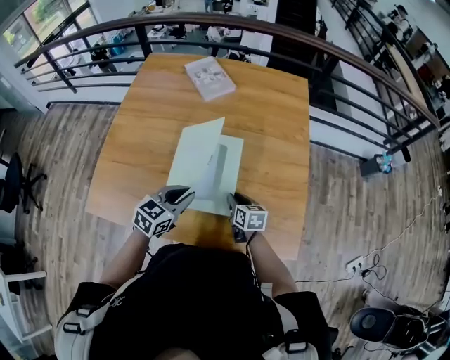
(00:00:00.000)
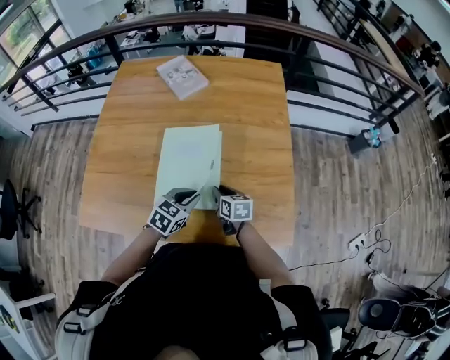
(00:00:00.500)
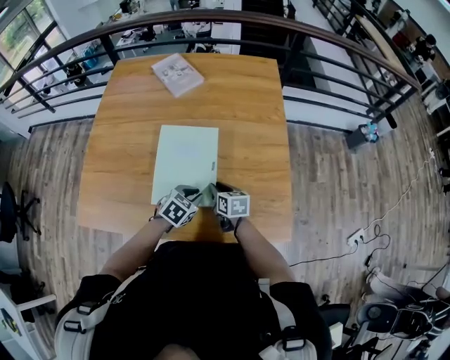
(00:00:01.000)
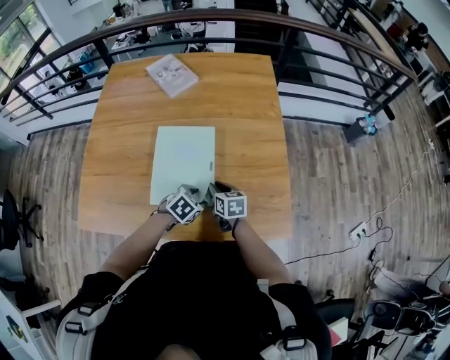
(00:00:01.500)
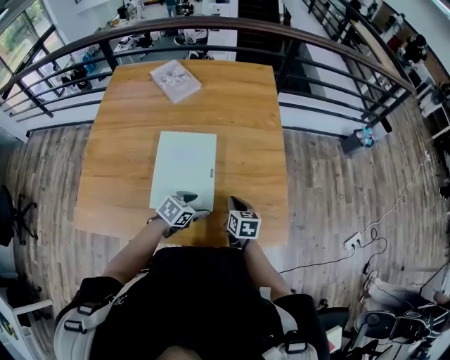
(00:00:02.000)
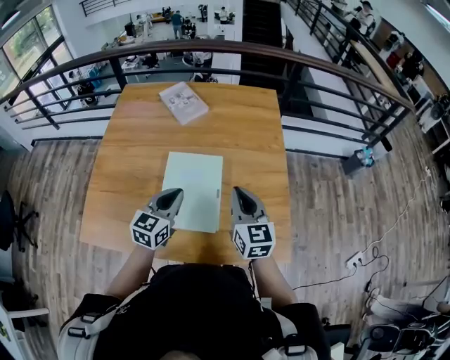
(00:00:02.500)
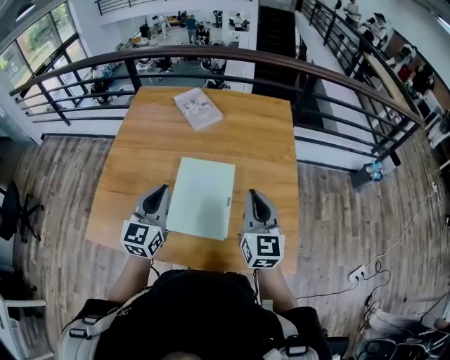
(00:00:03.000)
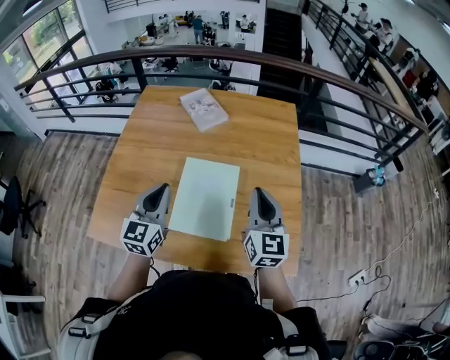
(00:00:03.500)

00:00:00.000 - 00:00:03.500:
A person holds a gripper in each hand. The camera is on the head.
00:00:00.000 - 00:00:02.000: The right gripper is displaced to the right by roughly 10 cm, and closes up, while the left gripper travels downward and to the right by roughly 15 cm, turns by some 30 degrees, and opens up.
00:00:02.000 - 00:00:03.500: The right gripper goes roughly 30 cm upward, and tilts its fingers roughly 40 degrees upward. The left gripper travels upward and to the left by roughly 30 cm, tilts its fingers about 40 degrees upward, and closes its fingers.

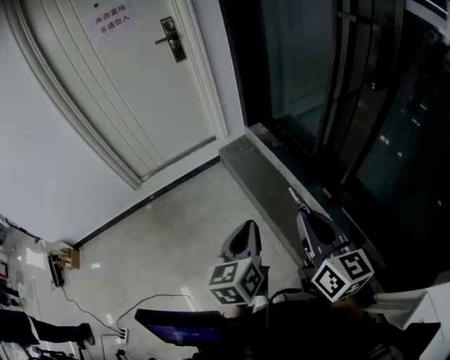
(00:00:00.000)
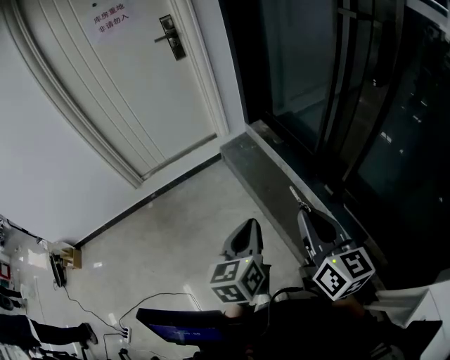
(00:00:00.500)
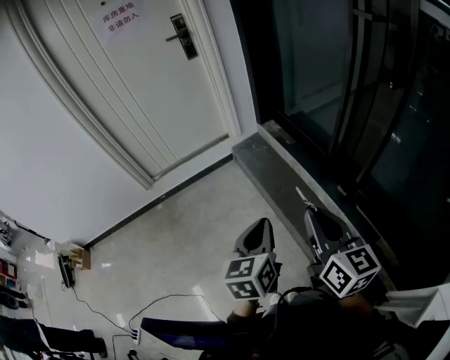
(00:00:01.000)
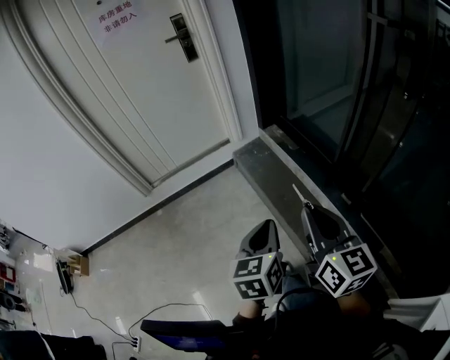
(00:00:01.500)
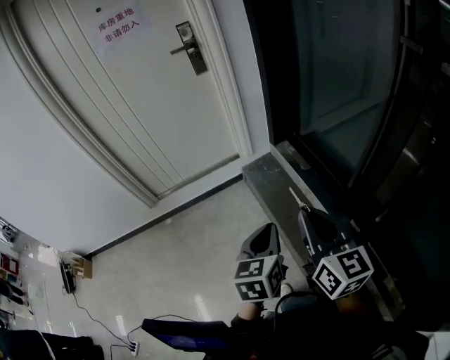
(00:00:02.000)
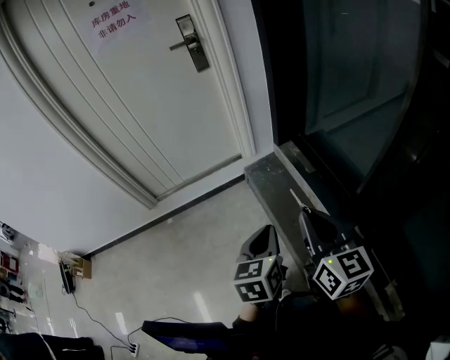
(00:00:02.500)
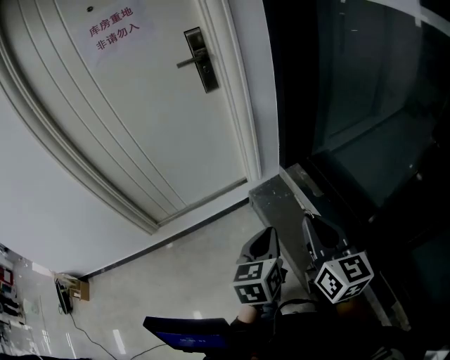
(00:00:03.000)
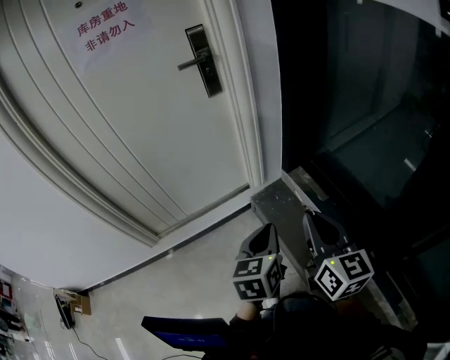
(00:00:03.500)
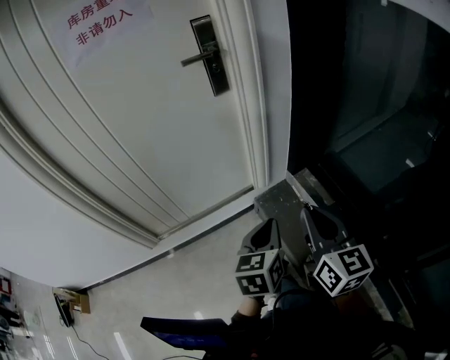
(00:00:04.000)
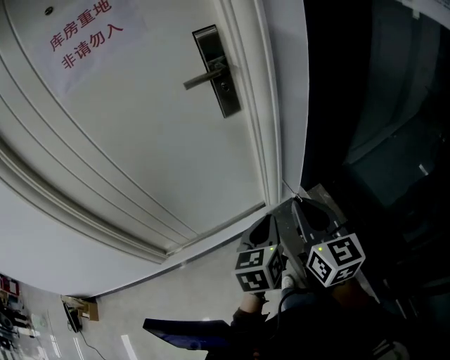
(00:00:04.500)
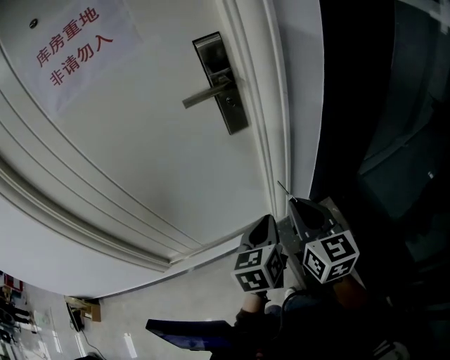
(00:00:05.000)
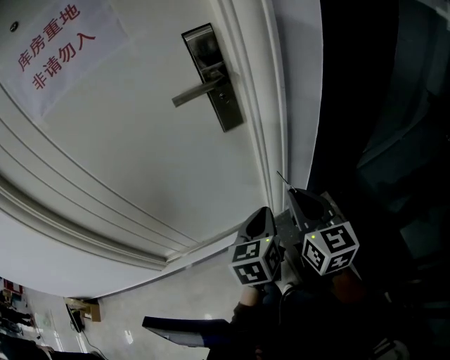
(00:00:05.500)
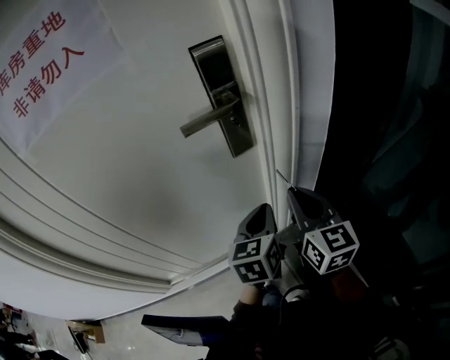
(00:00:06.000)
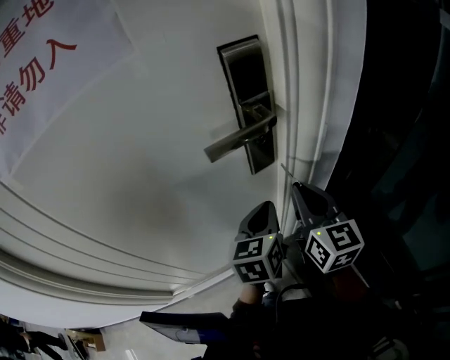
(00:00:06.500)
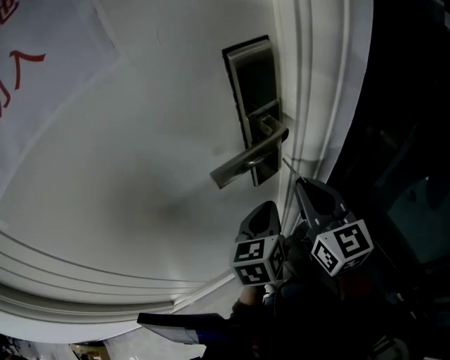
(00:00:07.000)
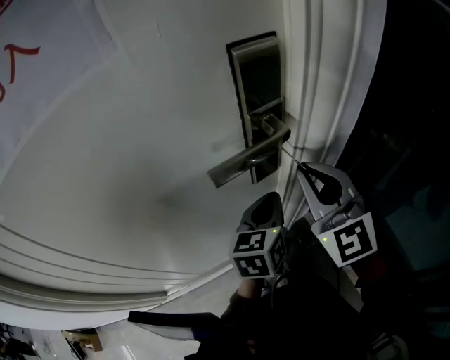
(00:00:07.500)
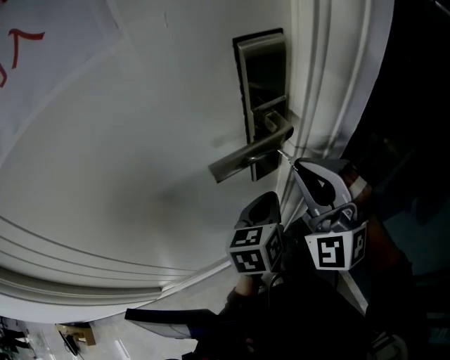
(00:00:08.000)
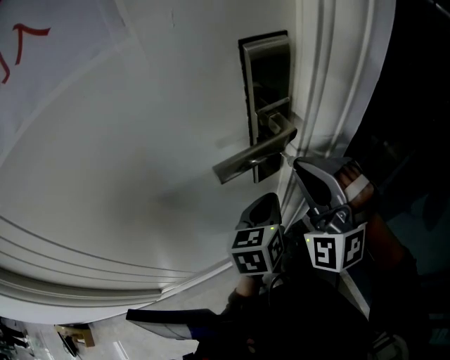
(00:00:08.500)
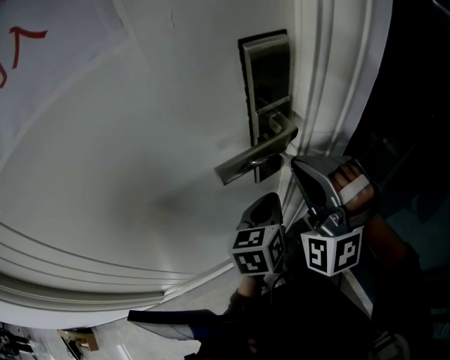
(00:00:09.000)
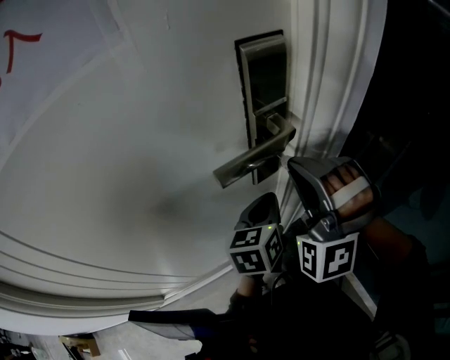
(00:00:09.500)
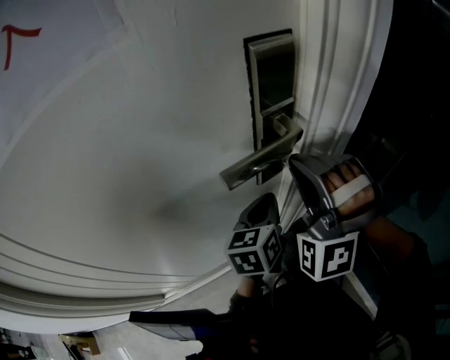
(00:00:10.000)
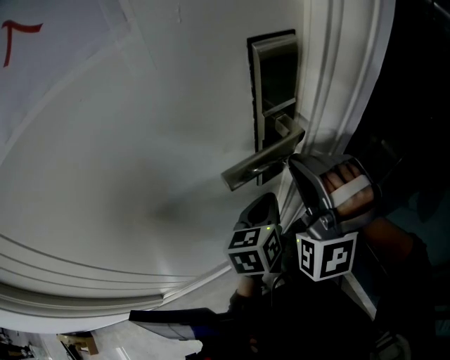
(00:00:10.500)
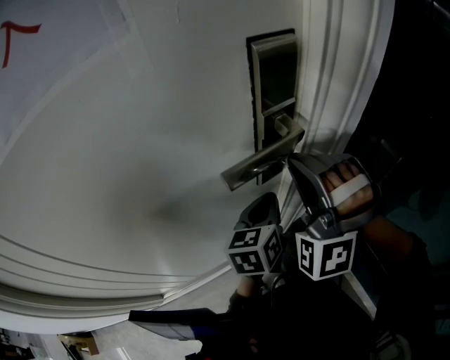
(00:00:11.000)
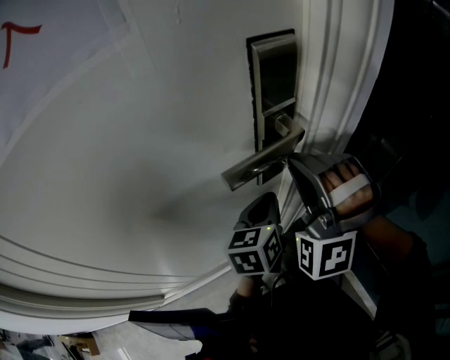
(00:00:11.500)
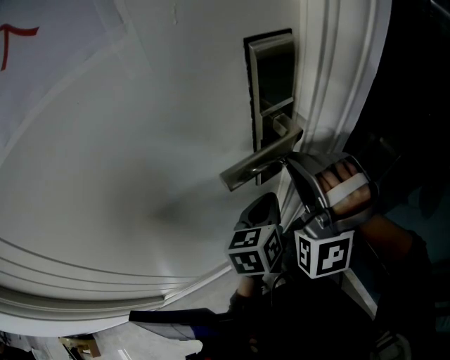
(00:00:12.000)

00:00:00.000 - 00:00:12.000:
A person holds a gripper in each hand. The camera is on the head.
00:00:00.000 - 00:00:02.000: The two grippers go roughly 25 cm forward.
00:00:02.000 - 00:00:04.000: The two grippers go about 40 cm forward and to the left.
00:00:04.000 - 00:00:06.000: Both grippers travel together forward, roughly 35 cm.
00:00:06.000 - 00:00:08.000: The left gripper is displaced forward by roughly 15 cm, while the right gripper shifts some 15 cm forward, upward and to the left, and rolls counterclockwise, seen from behind, by about 70 degrees.
00:00:08.000 - 00:00:10.000: The right gripper rotates approximately 30 degrees.
00:00:10.000 - 00:00:12.000: Both grippers stay about where they are.

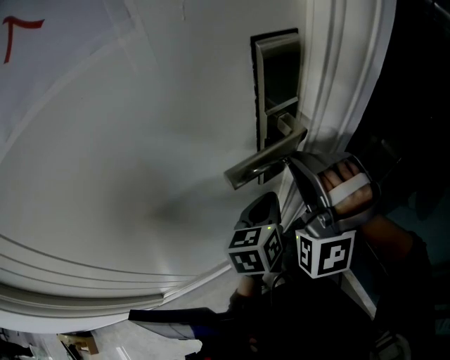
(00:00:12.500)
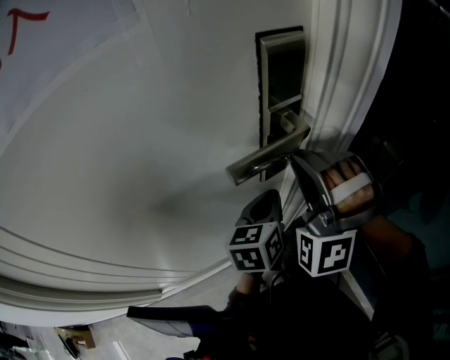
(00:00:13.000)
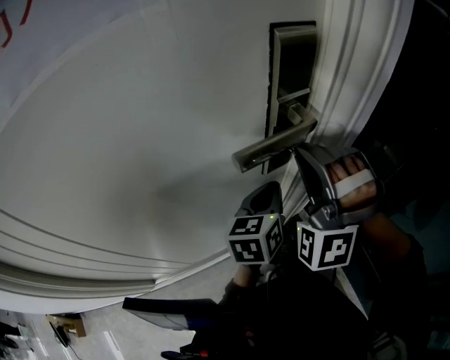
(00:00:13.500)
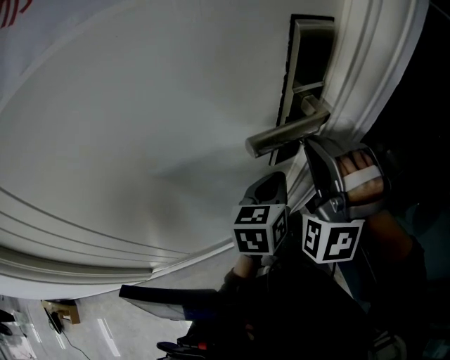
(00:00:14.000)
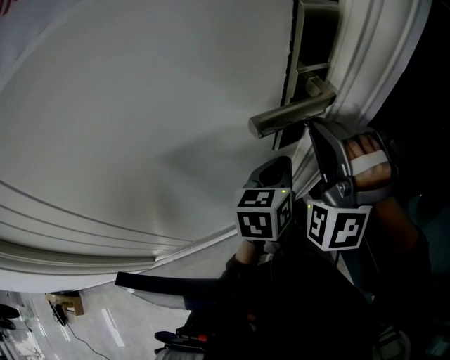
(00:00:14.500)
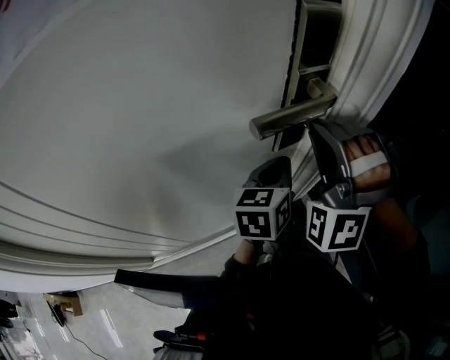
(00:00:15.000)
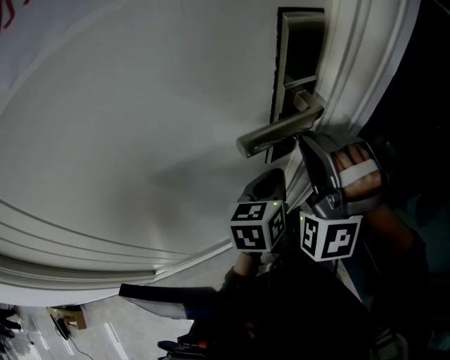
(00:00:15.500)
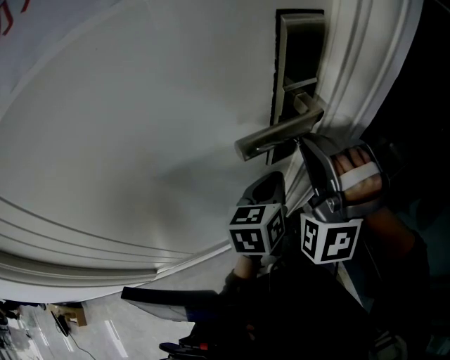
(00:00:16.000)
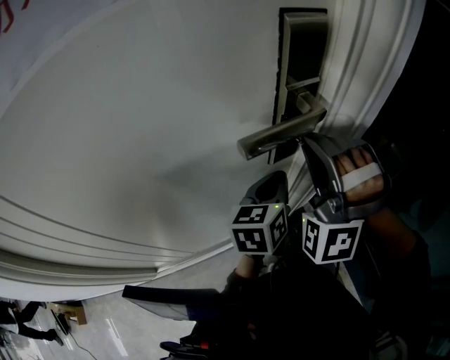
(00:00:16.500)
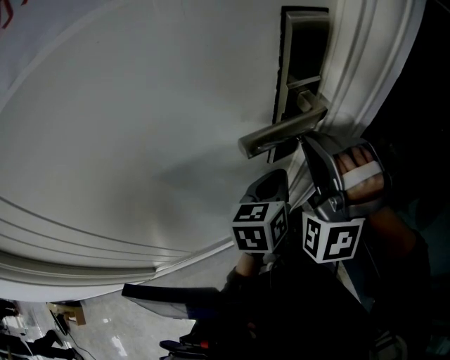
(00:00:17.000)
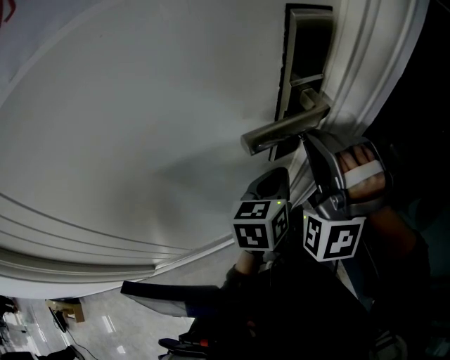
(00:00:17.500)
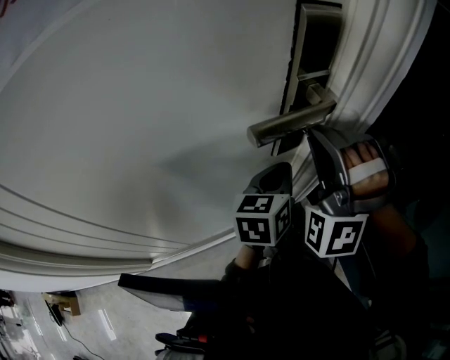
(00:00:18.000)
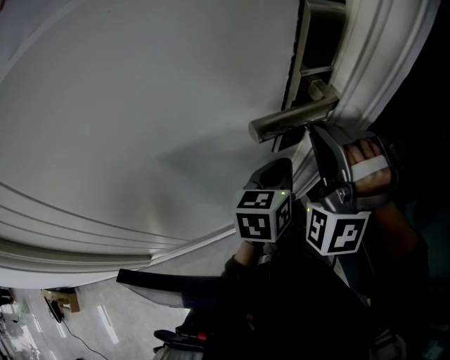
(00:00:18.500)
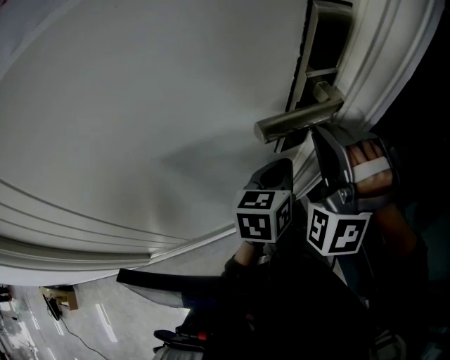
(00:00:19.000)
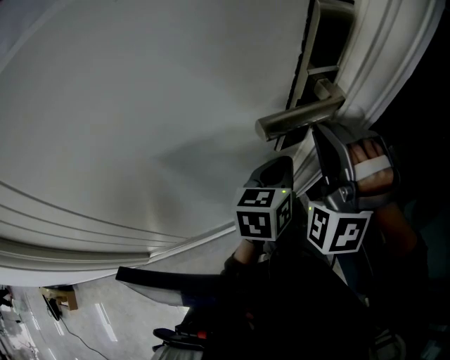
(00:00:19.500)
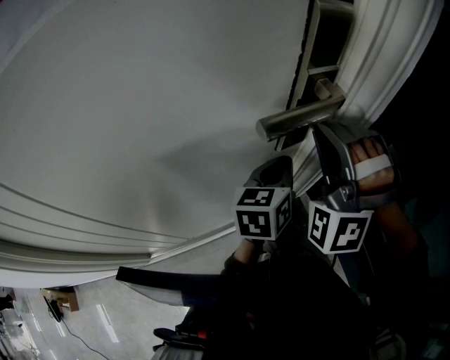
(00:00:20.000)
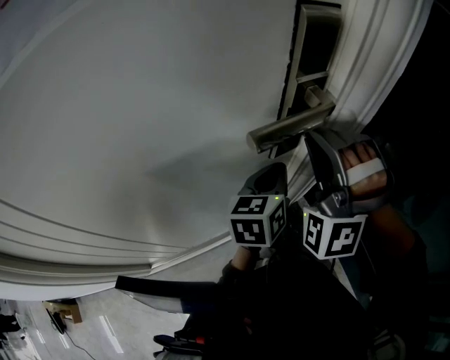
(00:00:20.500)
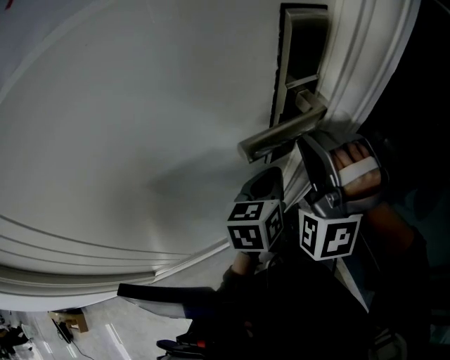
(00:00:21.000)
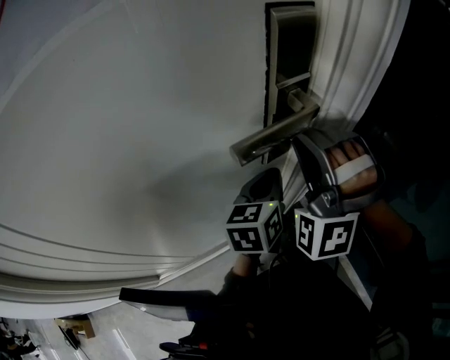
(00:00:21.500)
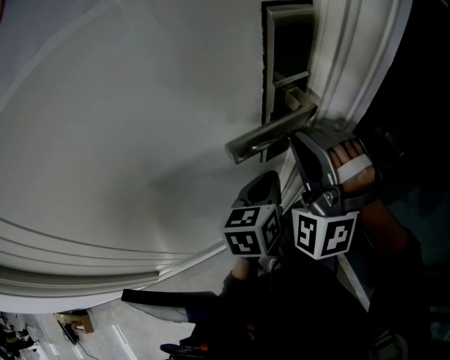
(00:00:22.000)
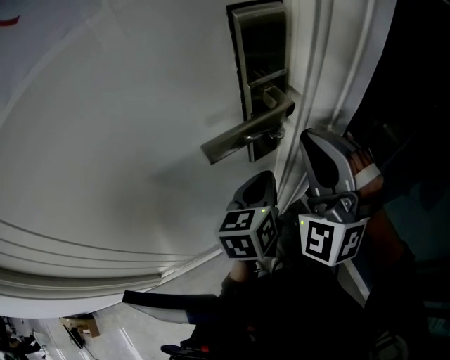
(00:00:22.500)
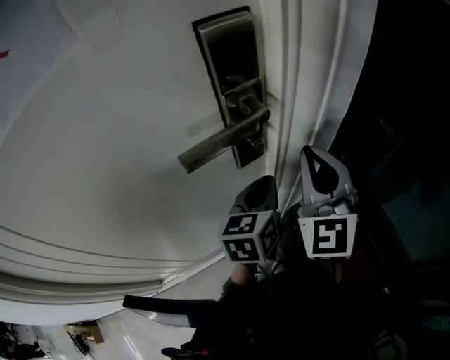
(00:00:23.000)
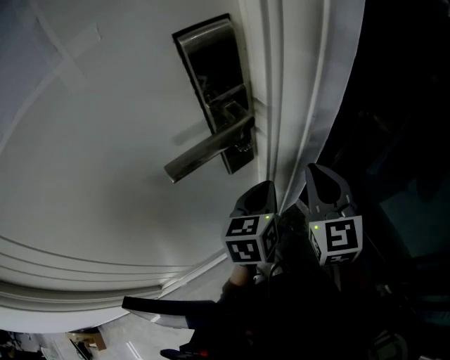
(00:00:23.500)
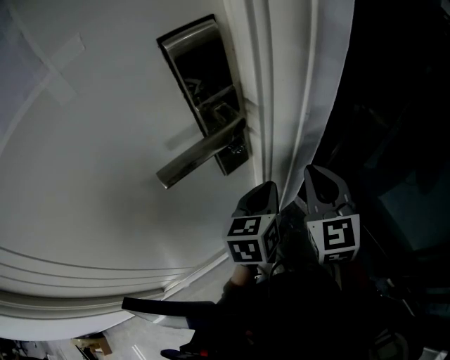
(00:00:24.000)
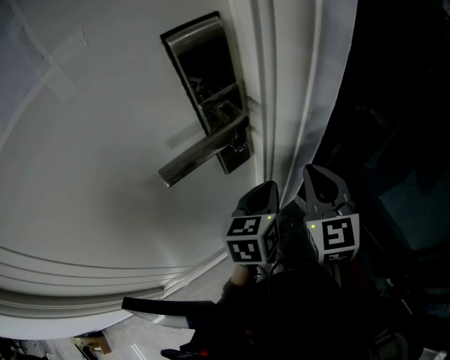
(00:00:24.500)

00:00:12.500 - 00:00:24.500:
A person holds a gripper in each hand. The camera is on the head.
00:00:12.500 - 00:00:20.500: The two grippers keep their place.
00:00:20.500 - 00:00:22.500: The right gripper rotates about 20 degrees.
00:00:22.500 - 00:00:24.500: The right gripper goes about 15 cm downward and to the right, and twists some 60 degrees clockwise, seen from behind; the left gripper is displaced to the right by some 5 cm.
